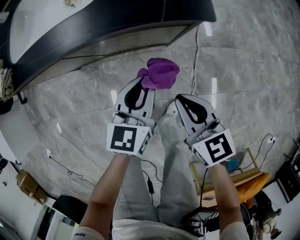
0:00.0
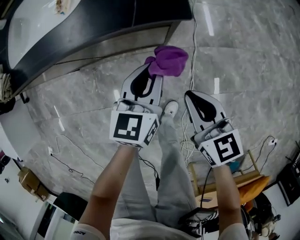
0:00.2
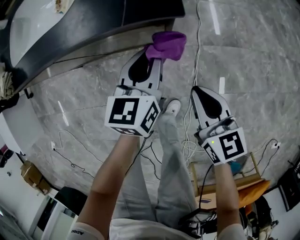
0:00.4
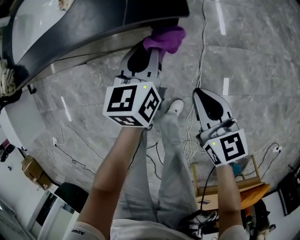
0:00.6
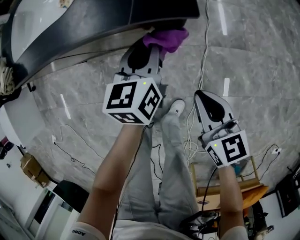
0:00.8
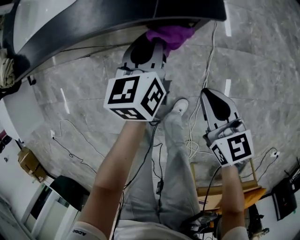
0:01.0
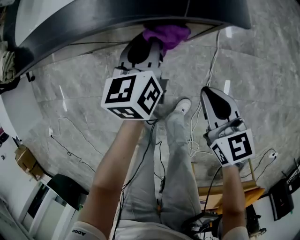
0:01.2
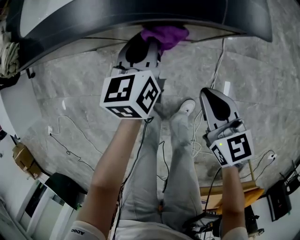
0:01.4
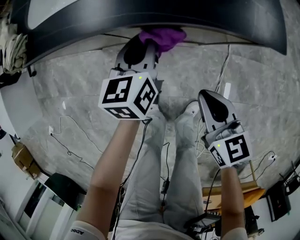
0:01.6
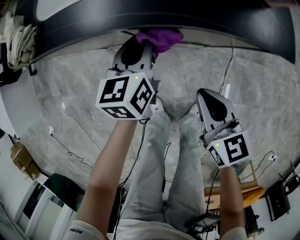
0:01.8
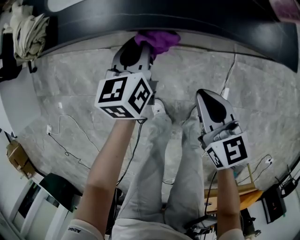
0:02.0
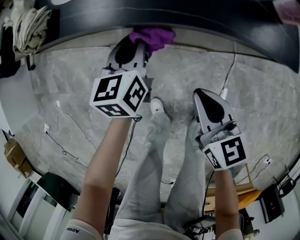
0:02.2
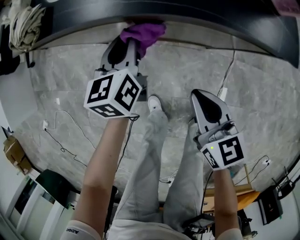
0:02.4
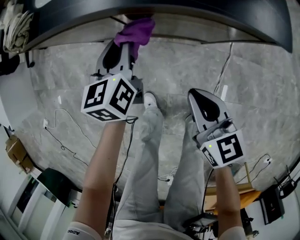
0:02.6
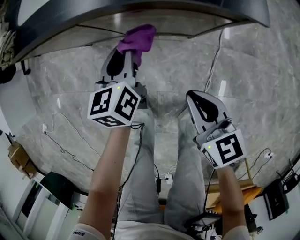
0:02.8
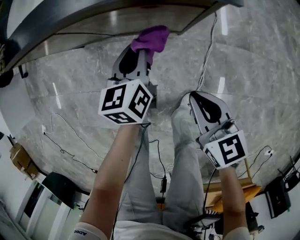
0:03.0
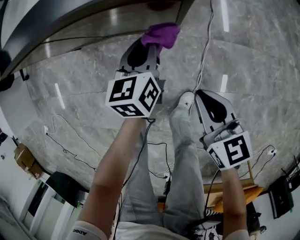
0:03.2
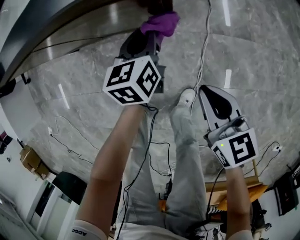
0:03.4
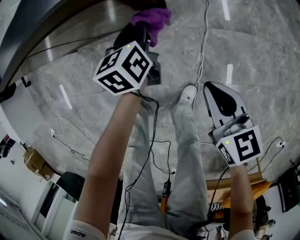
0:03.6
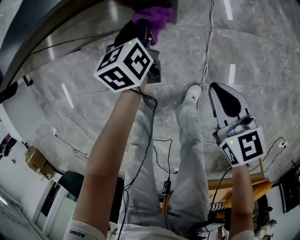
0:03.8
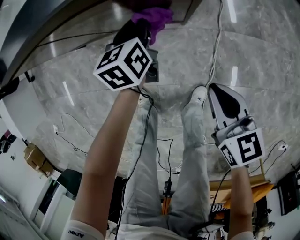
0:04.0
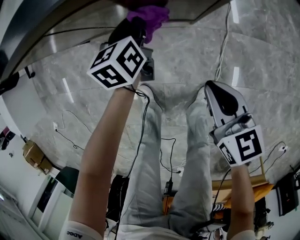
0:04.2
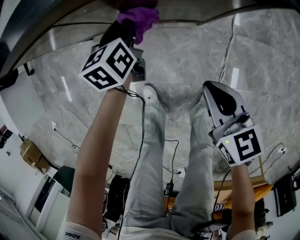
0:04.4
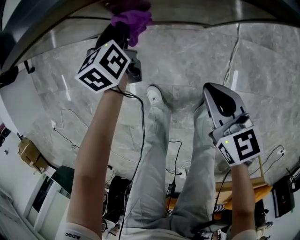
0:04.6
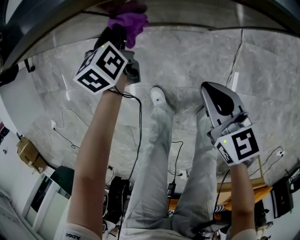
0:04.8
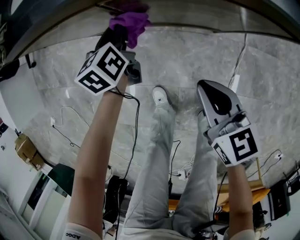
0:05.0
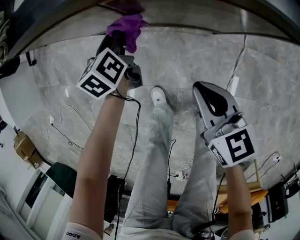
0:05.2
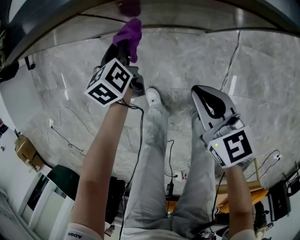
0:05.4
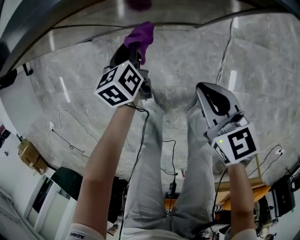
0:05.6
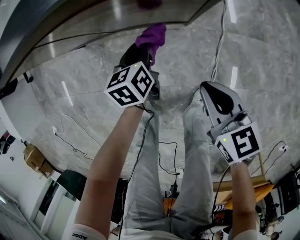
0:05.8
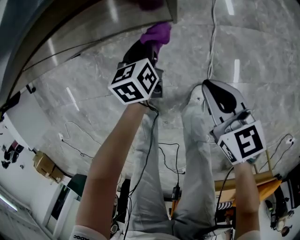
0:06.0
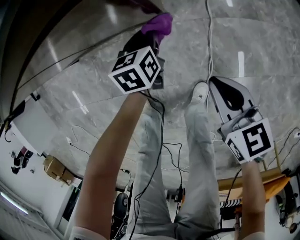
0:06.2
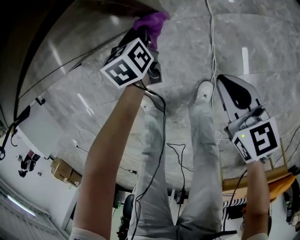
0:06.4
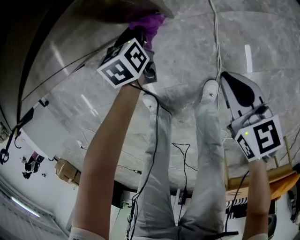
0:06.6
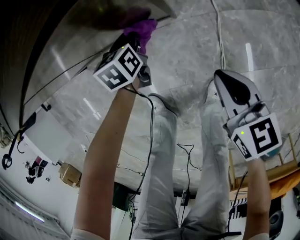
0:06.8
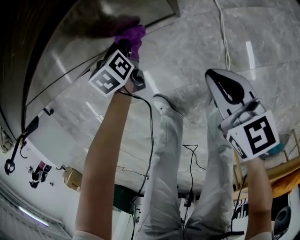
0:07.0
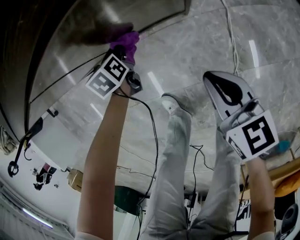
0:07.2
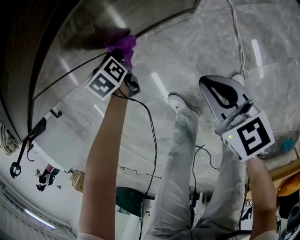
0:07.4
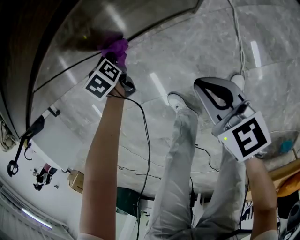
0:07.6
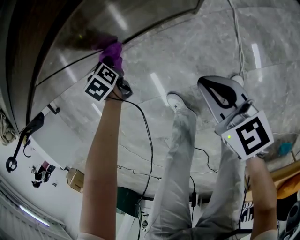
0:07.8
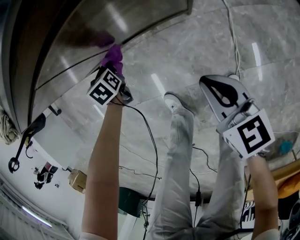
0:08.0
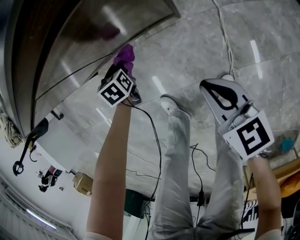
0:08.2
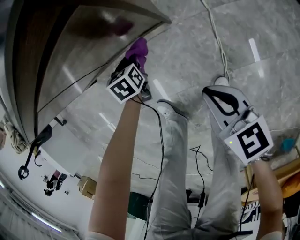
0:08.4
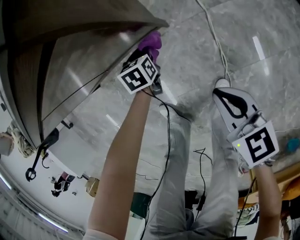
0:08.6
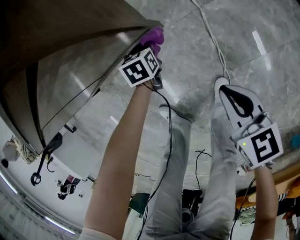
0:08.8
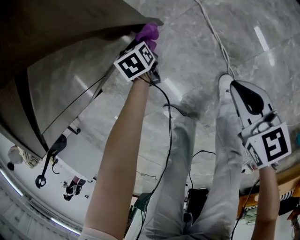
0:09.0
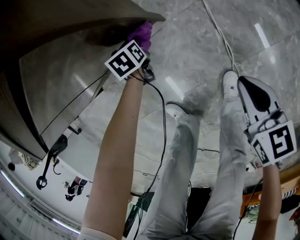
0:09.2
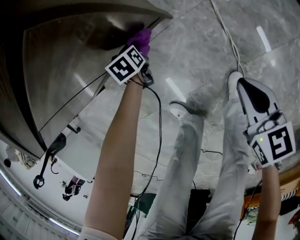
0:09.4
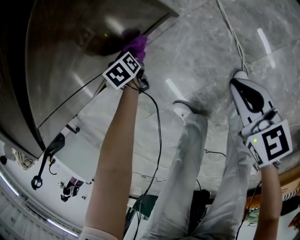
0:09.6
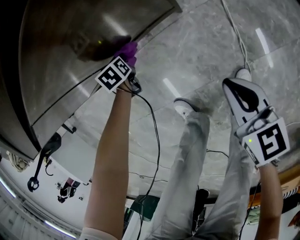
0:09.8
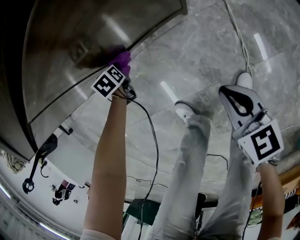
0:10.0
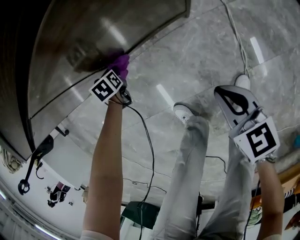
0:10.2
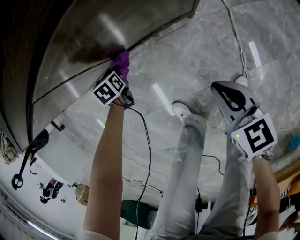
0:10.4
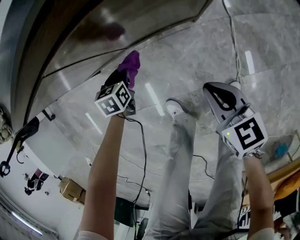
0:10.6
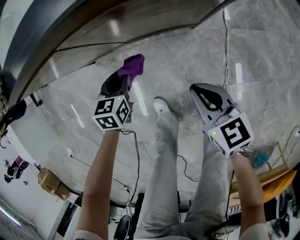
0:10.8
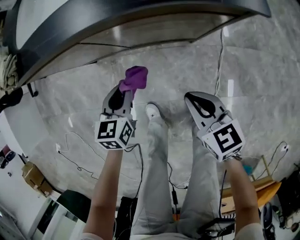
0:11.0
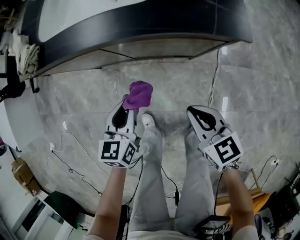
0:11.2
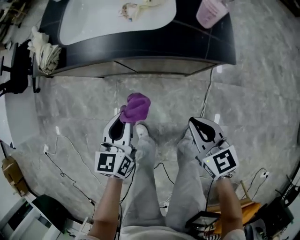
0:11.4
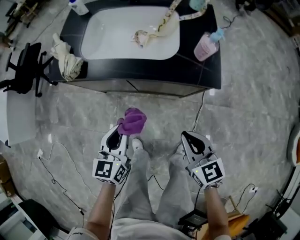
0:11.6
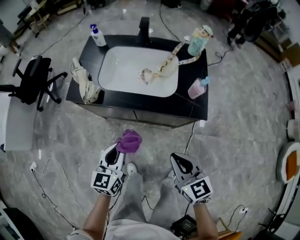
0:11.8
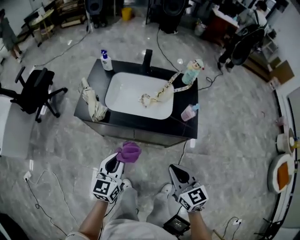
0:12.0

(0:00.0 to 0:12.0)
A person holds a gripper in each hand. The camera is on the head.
0:00.0 - 0:01.6: The left gripper shifts some 20 cm to the left and forward. The right gripper goes about 5 cm to the left.
0:01.6 - 0:03.0: The left gripper moves backward and to the right, some 15 cm, while the right gripper goes some 10 cm to the right and backward.
0:03.0 - 0:04.4: The right gripper heads to the left and downward, covering about 5 cm. The left gripper goes roughly 15 cm to the left, forward and downward.
0:04.4 - 0:06.0: The left gripper travels to the right, backward and downward by roughly 20 cm, while the right gripper goes roughly 10 cm to the right.
0:06.0 - 0:07.6: The right gripper is displaced to the left by about 15 cm. The left gripper moves to the left, about 25 cm, and changes its angle by approximately 20 degrees.
0:07.6 - 0:09.0: The right gripper changes place by roughly 25 cm. Meanwhile the left gripper ends up some 35 cm from where it was, and swivels approximately 30 degrees.
0:09.0 - 0:10.4: The left gripper moves to the left, some 35 cm, while the right gripper is displaced to the left and forward by about 25 cm.
0:10.4 - 0:12.0: The grippers both shift upward by approximately 60 cm. The right gripper swivels about 30 degrees; the left gripper tips its fingers upward by approximately 50 degrees.

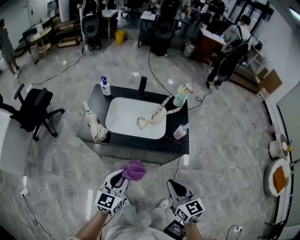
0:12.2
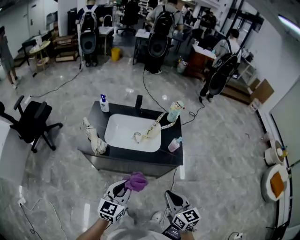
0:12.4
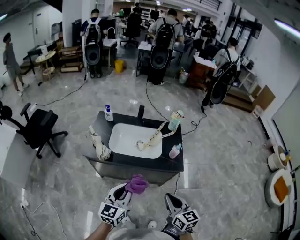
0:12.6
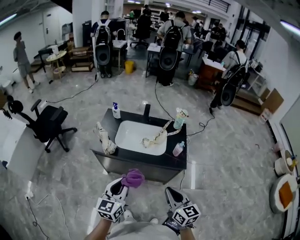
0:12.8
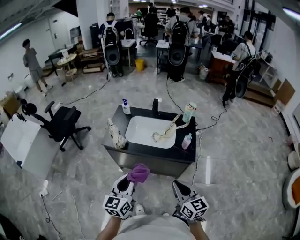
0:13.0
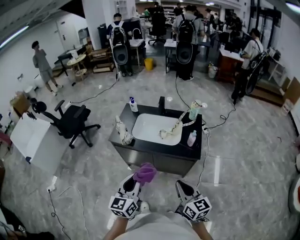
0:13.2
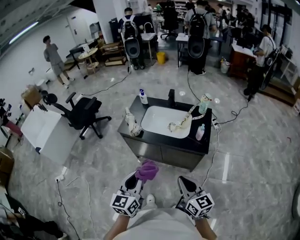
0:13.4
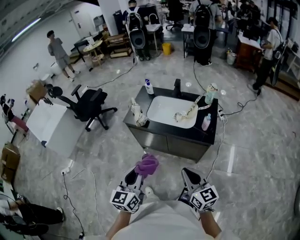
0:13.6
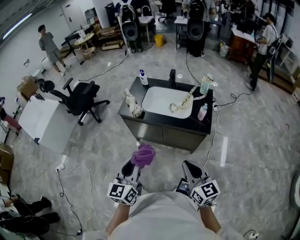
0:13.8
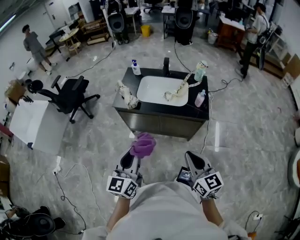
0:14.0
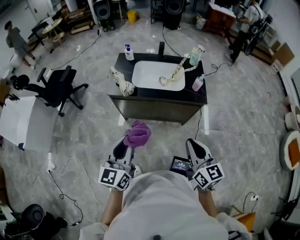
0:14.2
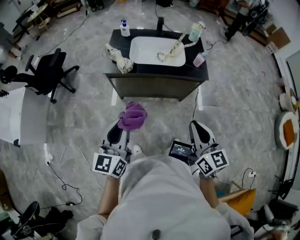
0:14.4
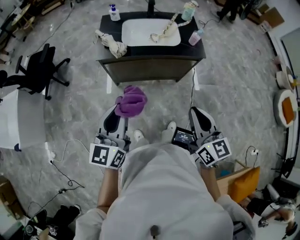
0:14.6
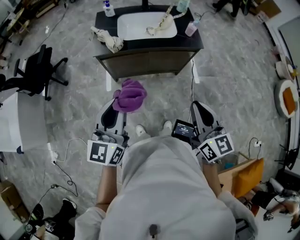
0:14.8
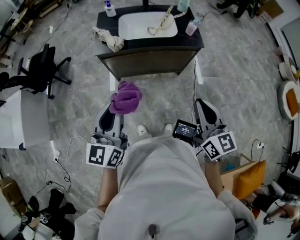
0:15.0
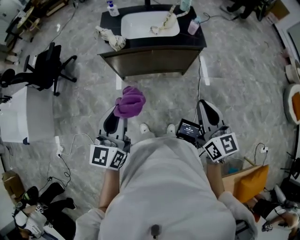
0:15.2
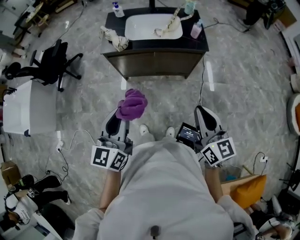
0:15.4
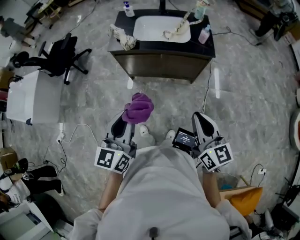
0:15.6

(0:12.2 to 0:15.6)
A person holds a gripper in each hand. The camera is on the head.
0:12.2 - 0:13.8: The two grippers go approximately 20 cm backward and upward. The left gripper swivels some 30 degrees.
0:13.8 - 0:15.6: The left gripper moves roughly 15 cm; the right gripper shifts by approximately 15 cm.

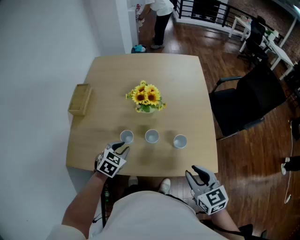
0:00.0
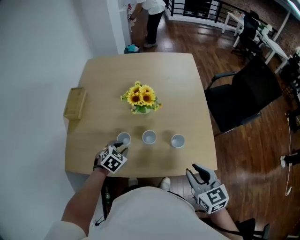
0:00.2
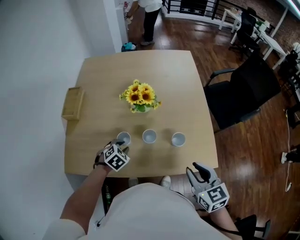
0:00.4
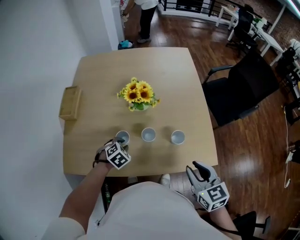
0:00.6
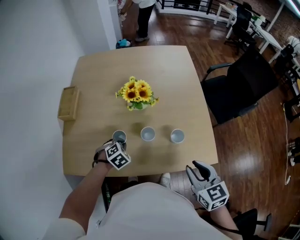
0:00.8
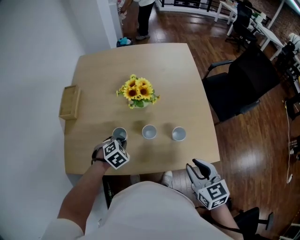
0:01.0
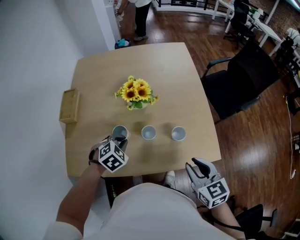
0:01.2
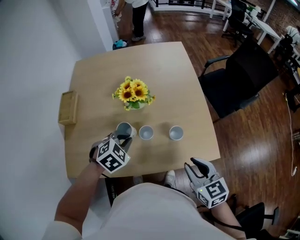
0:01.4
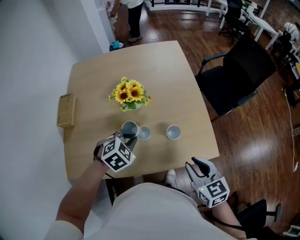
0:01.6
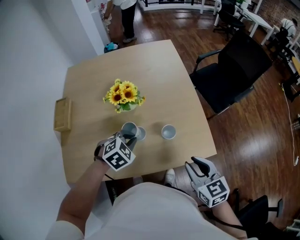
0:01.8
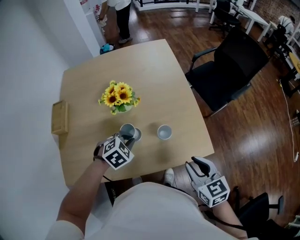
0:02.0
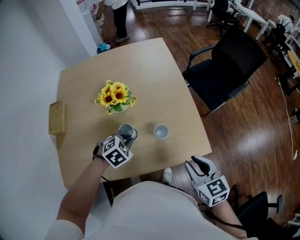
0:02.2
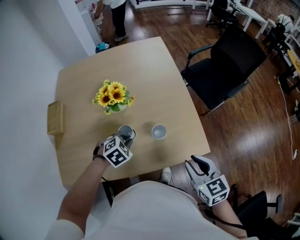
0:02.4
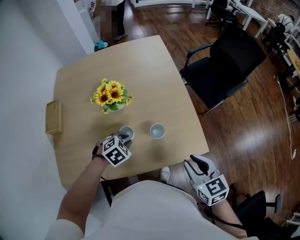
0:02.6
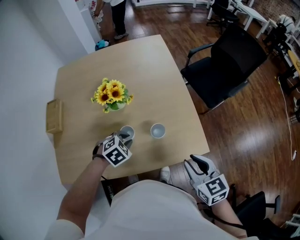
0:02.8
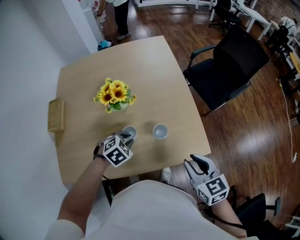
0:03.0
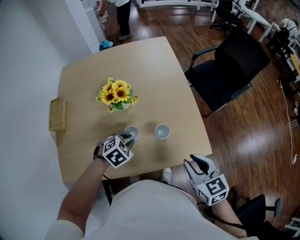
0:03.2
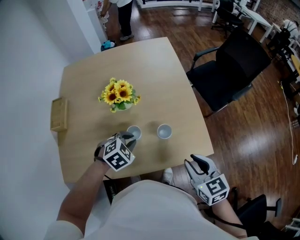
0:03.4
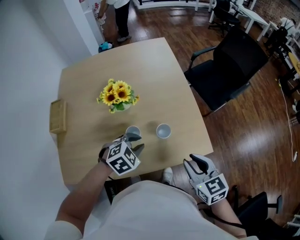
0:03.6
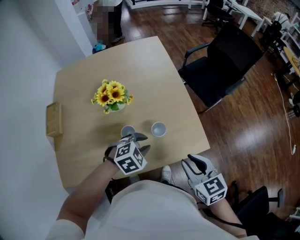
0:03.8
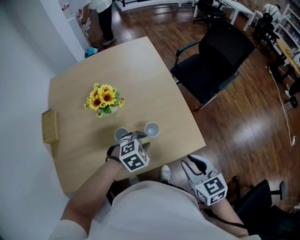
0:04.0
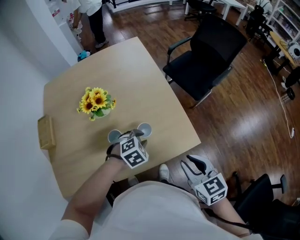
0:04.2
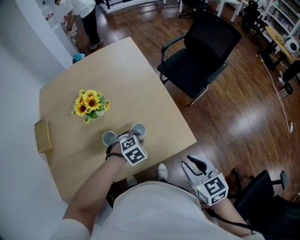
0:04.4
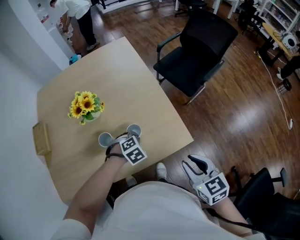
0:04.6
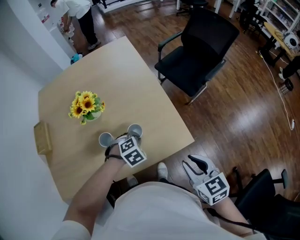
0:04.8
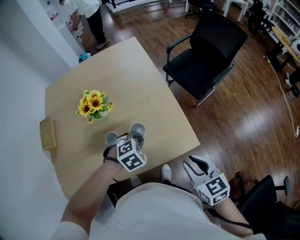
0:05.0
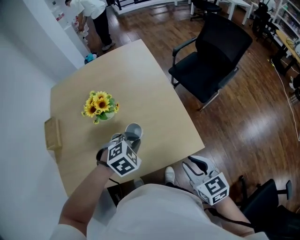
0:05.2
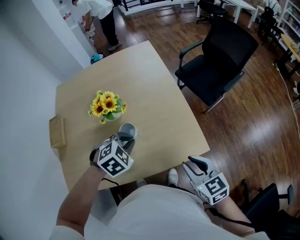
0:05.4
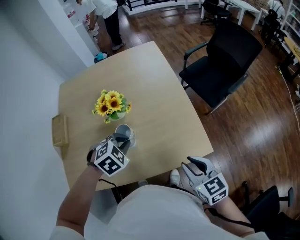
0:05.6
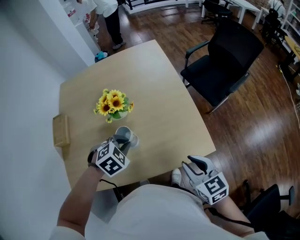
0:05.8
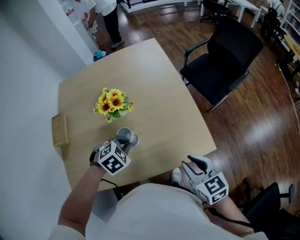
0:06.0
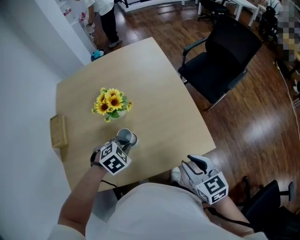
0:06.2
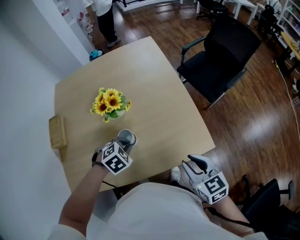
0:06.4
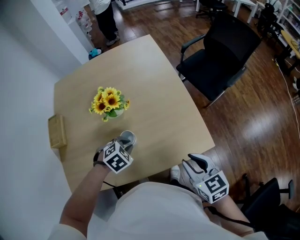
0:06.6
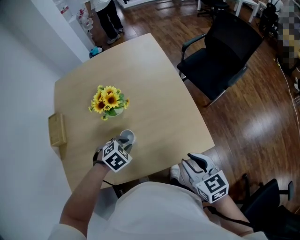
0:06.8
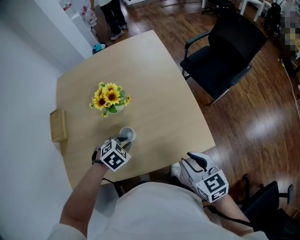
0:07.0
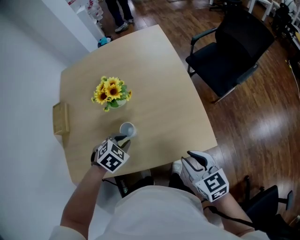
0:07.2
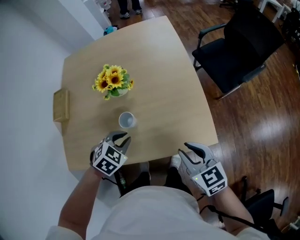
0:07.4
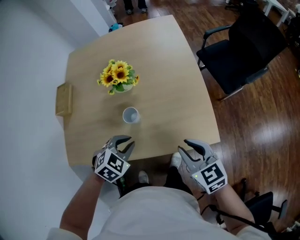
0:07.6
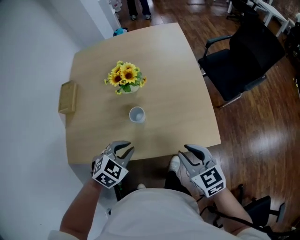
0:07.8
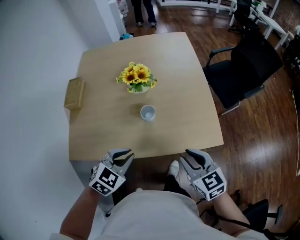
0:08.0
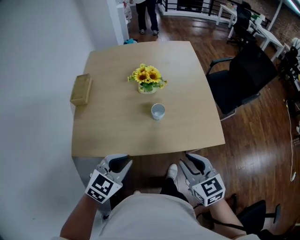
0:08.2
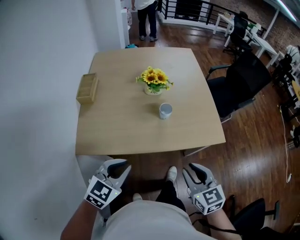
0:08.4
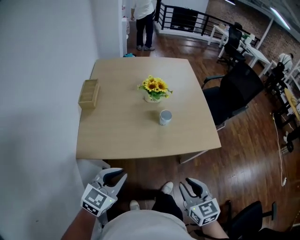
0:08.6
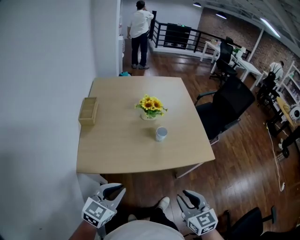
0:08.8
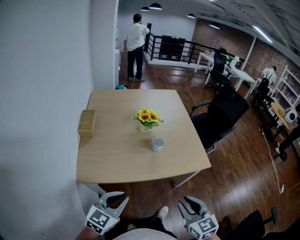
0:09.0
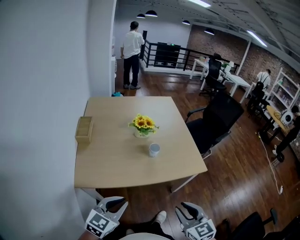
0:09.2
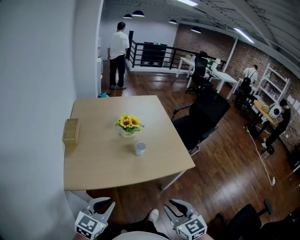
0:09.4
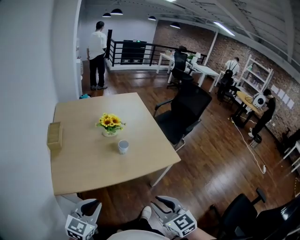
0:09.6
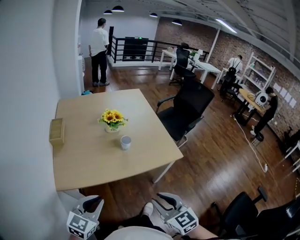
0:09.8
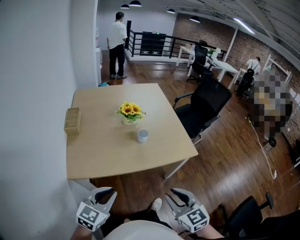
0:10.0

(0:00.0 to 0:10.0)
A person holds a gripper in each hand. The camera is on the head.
0:00.0 - 0:01.4: The left gripper is displaced to the right by about 5 cm, and rotates roughly 30 degrees.
0:01.4 - 0:02.8: The left gripper travels to the right and downward by roughly 10 cm. The right gripper is displaced to the right by about 10 cm.
0:02.8 - 0:04.2: The left gripper heads to the right, covering roughly 10 cm.
0:04.2 - 0:05.8: The left gripper goes about 15 cm to the left and upward, and closes up; the right gripper changes place by some 5 cm.
0:05.8 - 0:07.2: The left gripper moves downward, roughly 5 cm.
0:07.2 - 0:08.6: The left gripper moves backward, to the left and upward, about 40 cm, and tilts its fingers approximately 40 degrees upward. Meanwhile the right gripper goes roughly 30 cm backward and to the left.
0:08.6 - 0:10.0: The right gripper shifts some 5 cm backward.
